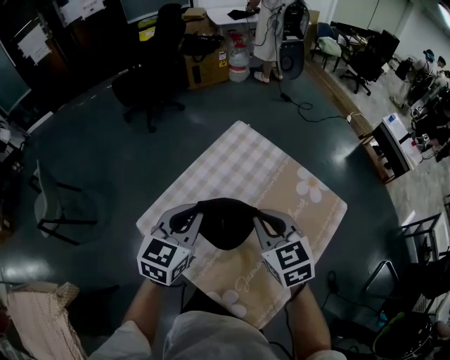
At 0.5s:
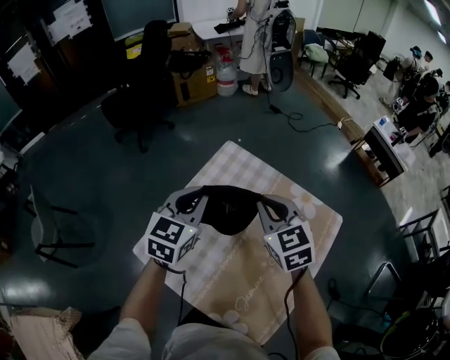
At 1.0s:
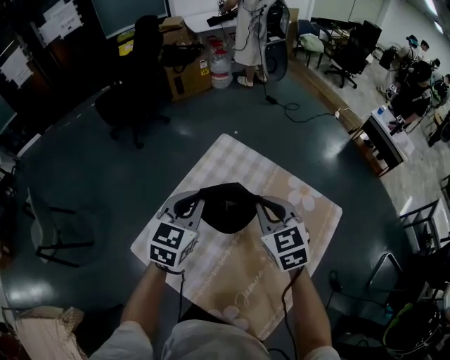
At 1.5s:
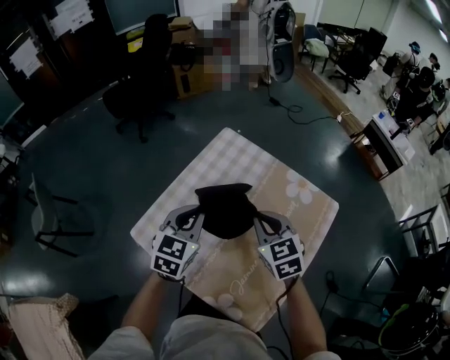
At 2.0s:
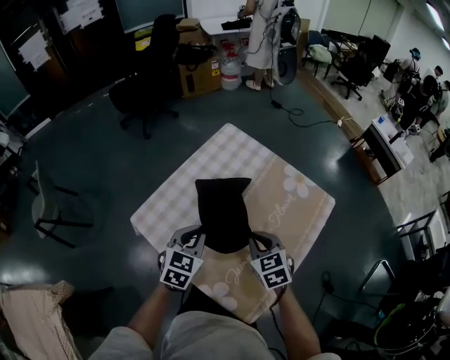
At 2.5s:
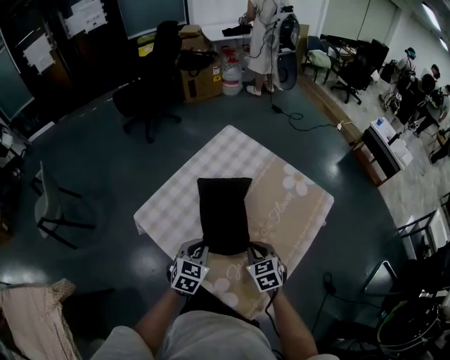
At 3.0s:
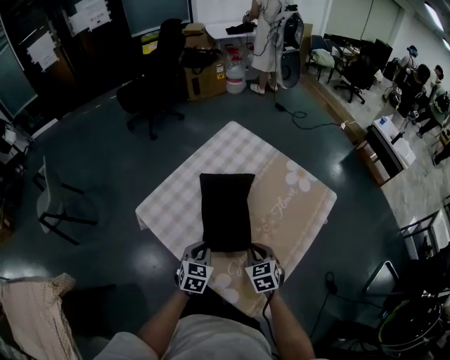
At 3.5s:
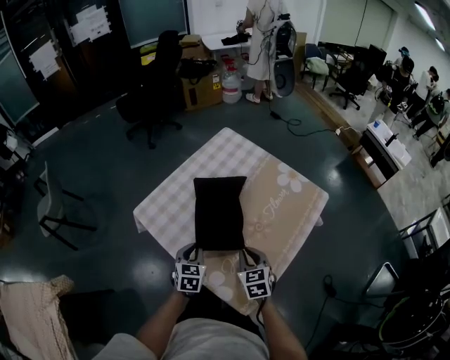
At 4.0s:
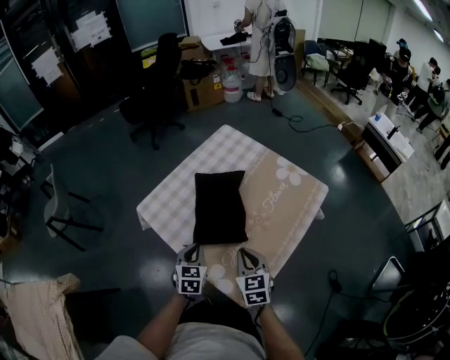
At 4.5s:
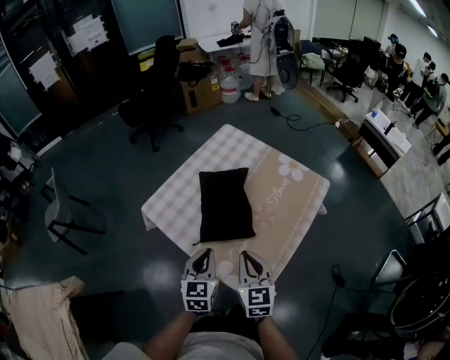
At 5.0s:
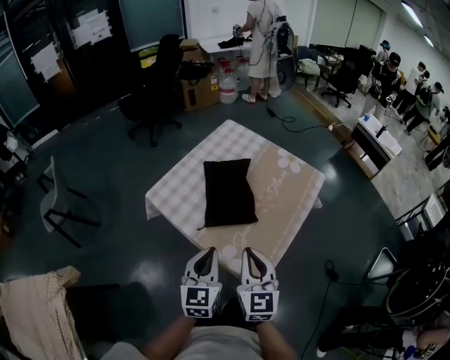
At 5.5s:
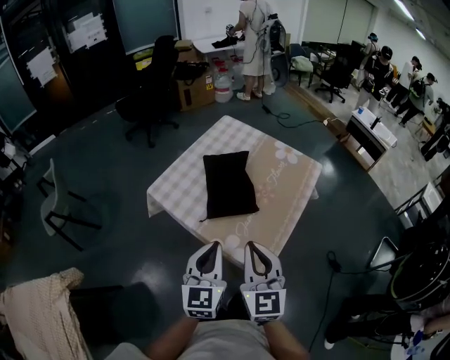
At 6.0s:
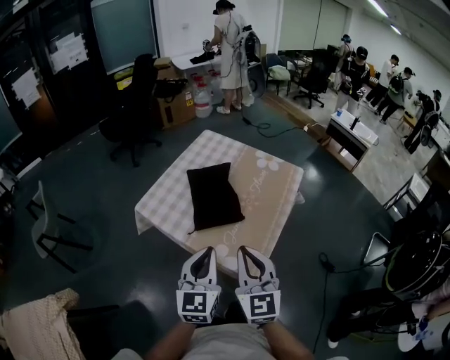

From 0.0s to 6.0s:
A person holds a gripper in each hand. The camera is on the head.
From 0.0s to 2.0s: The left gripper moves downward and backward, some 15 cm, while the right gripper shifts some 15 cm downward, backward and to the right.
From 2.0s to 4.0s: The right gripper goes roughly 15 cm backward. Meanwhile the left gripper travels backward and downward by some 15 cm.
From 4.0s to 6.0s: Both grippers travel together upward and backward, roughly 25 cm. The right gripper swivels roughly 30 degrees. Meanwhile the left gripper swivels about 30 degrees.

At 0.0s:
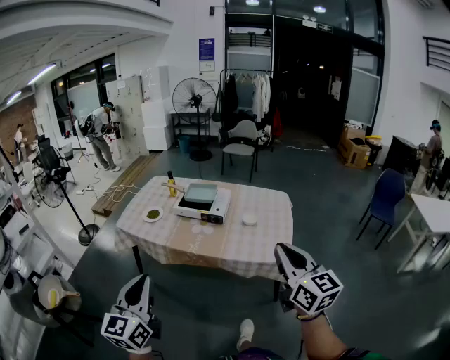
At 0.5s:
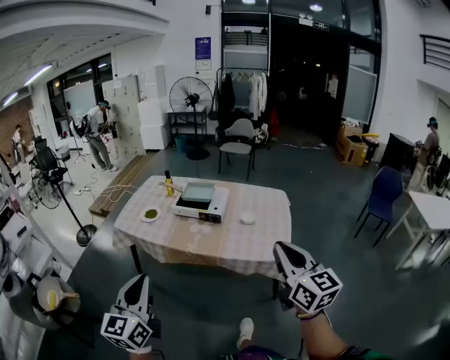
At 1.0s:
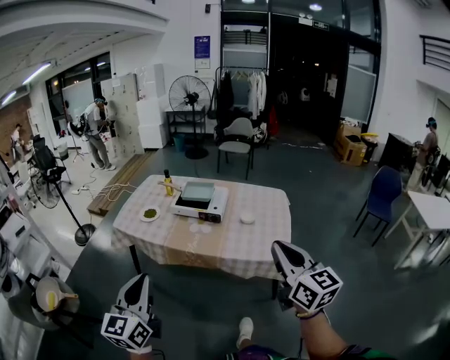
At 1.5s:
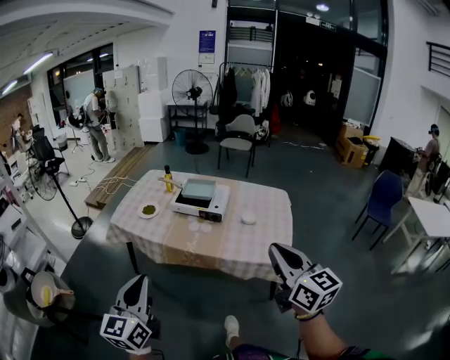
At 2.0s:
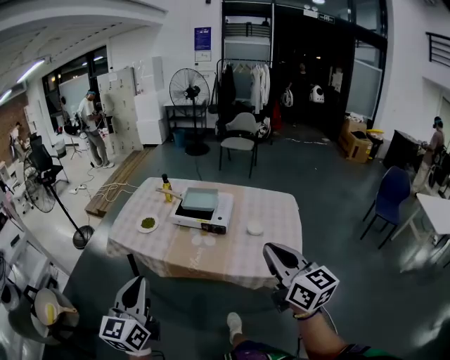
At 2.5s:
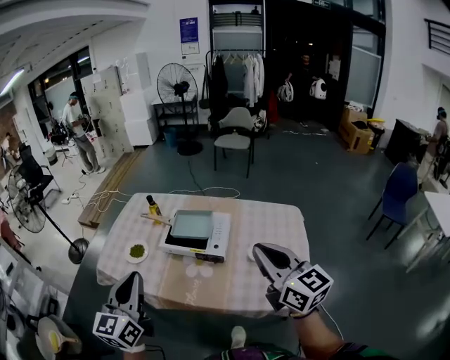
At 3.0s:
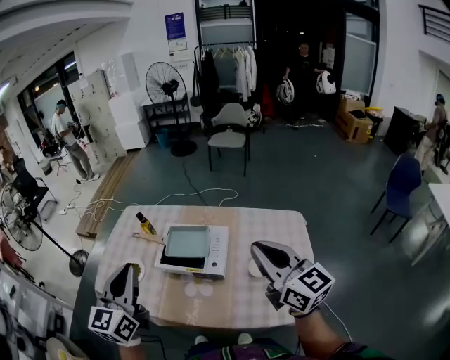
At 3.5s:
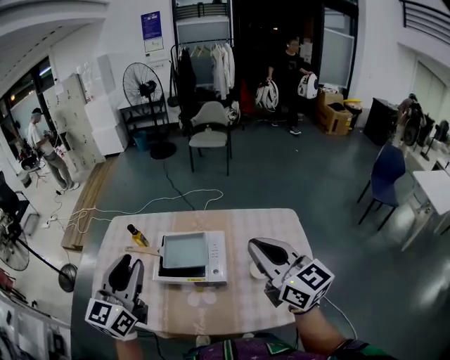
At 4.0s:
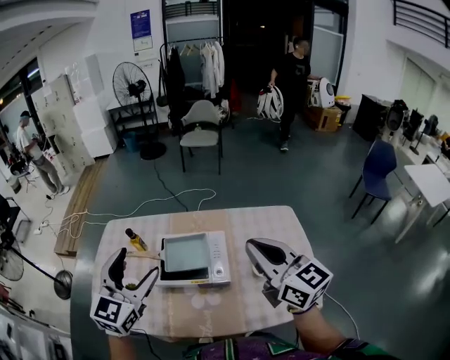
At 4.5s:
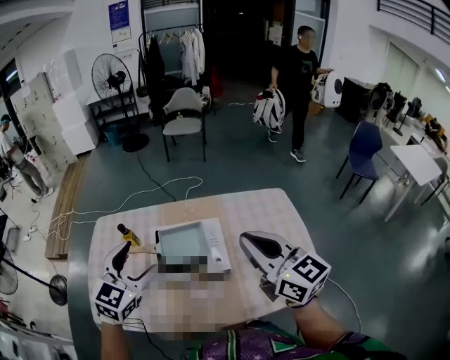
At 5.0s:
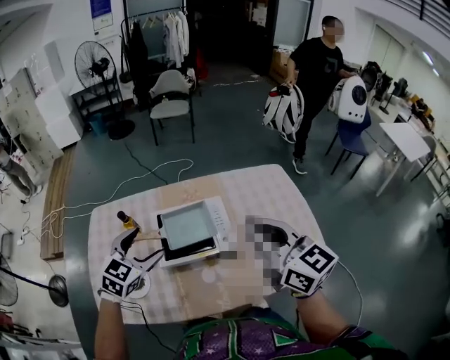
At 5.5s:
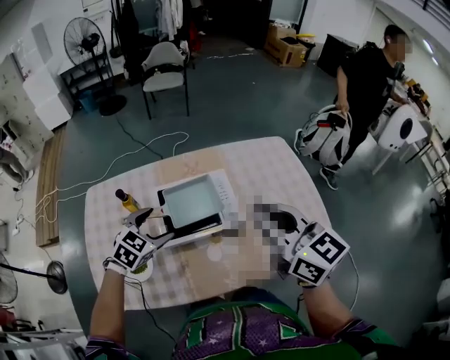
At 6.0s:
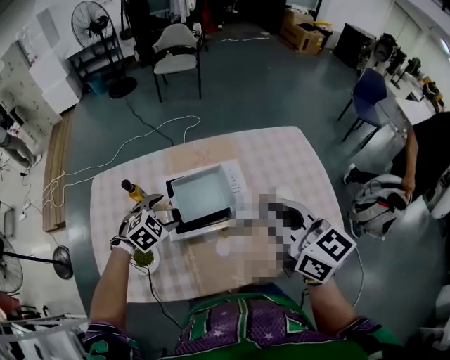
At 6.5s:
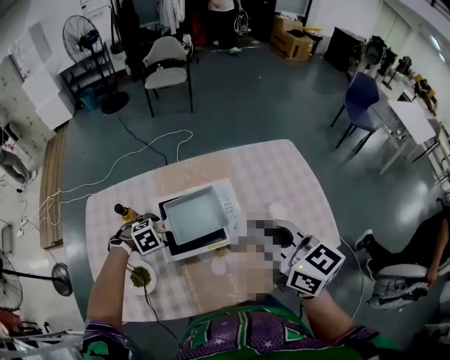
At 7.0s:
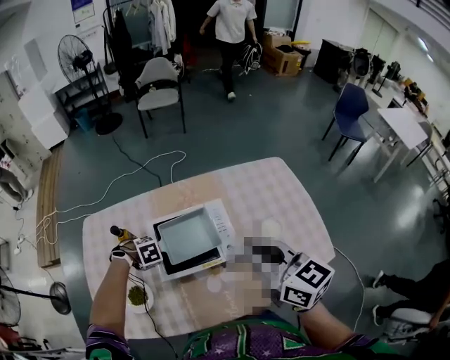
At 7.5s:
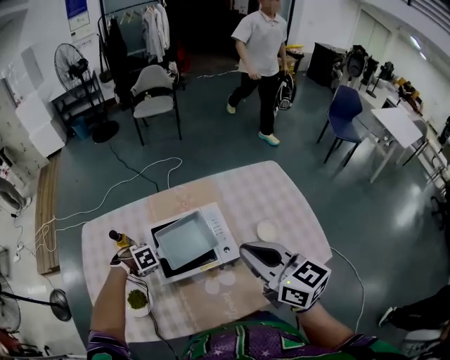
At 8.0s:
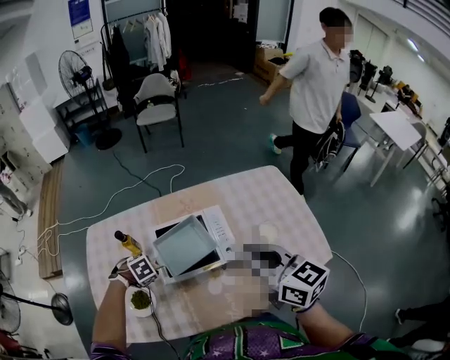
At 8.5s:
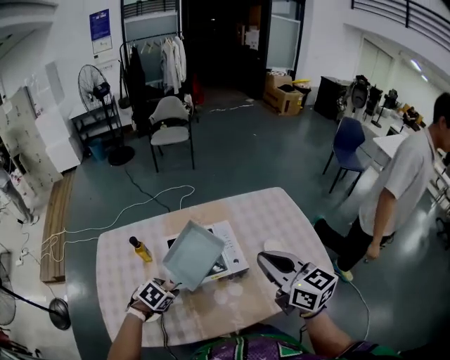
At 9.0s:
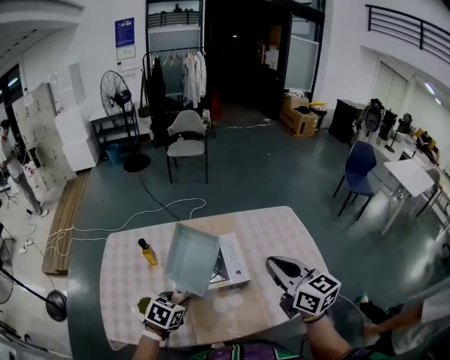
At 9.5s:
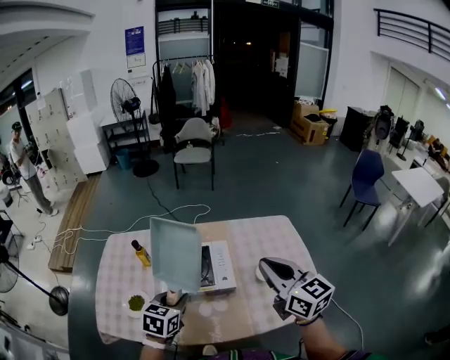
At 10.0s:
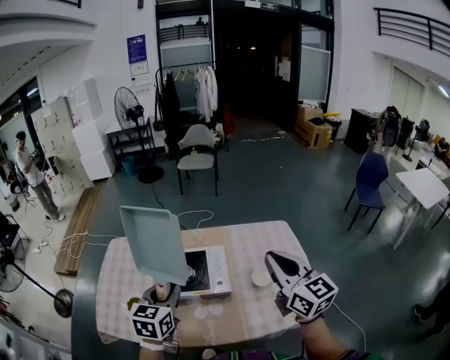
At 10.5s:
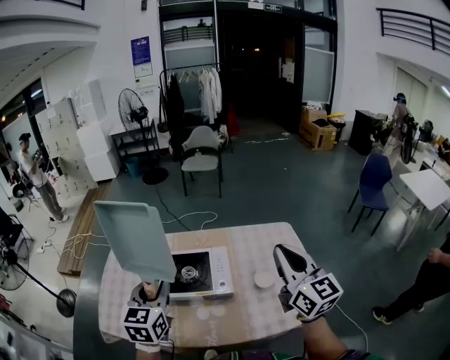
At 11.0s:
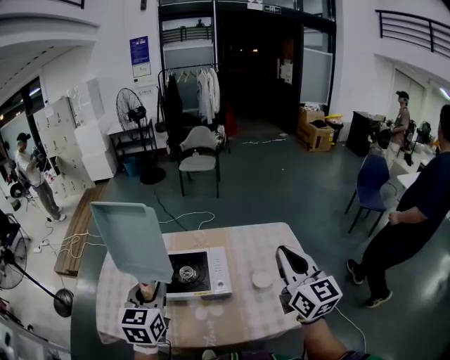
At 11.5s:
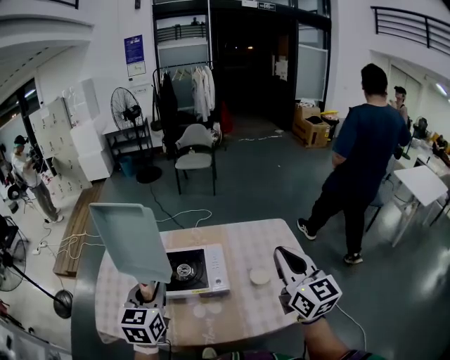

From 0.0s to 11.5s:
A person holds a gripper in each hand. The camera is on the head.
From 0.0s to 2.0s: The grippers both shift forward by roughly 15 cm.
From 2.0s to 4.0s: Both grippers are carried forward, roughly 50 cm. The left gripper changes its angle by about 30 degrees, and opens its fingers.
From 4.0s to 6.0s: The right gripper heads to the left and downward, covering roughly 15 cm. Meanwhile the left gripper moves downward, some 35 cm, and angles its fingers downward, by about 50 degrees.
From 6.0s to 7.5s: The left gripper goes approximately 10 cm downward, changes its angle by roughly 40 degrees, and closes.
From 7.5s to 9.5s: The right gripper ends up approximately 15 cm from where it was. The left gripper moves some 35 cm, and tips its fingers upward by about 50 degrees.
From 9.5s to 11.5s: The left gripper travels upward by about 15 cm, and rotates roughly 30 degrees. The right gripper travels to the right by some 10 cm.

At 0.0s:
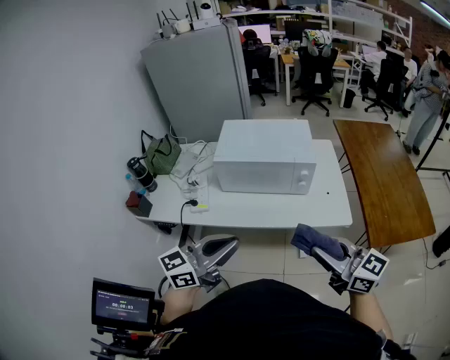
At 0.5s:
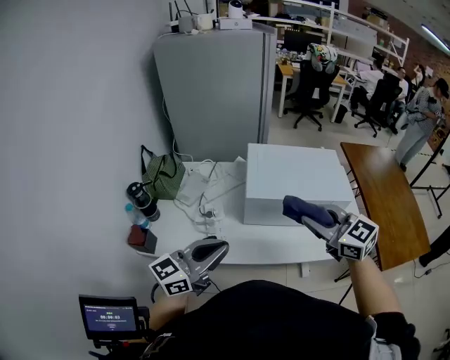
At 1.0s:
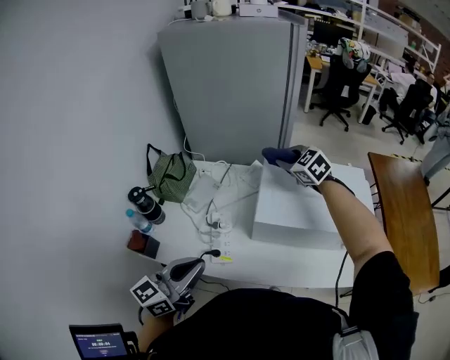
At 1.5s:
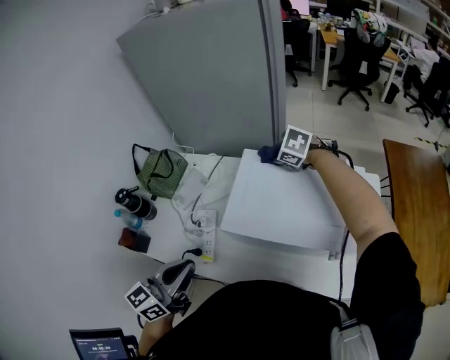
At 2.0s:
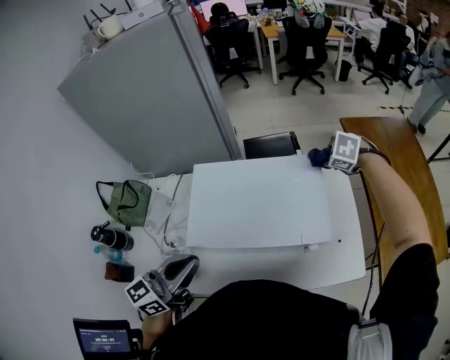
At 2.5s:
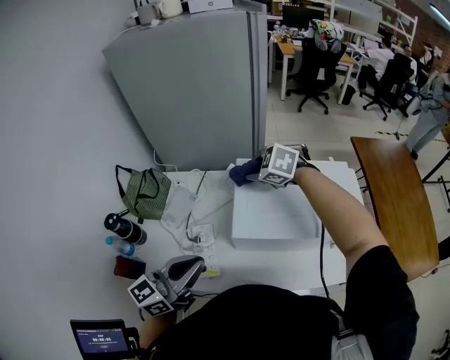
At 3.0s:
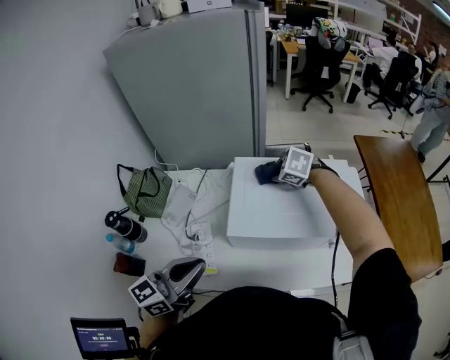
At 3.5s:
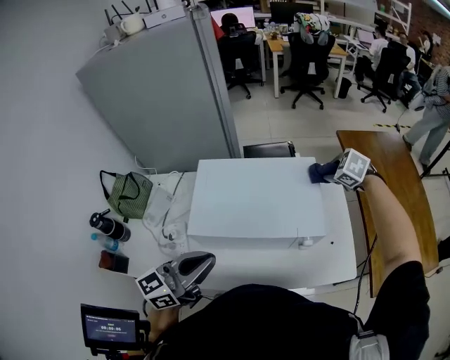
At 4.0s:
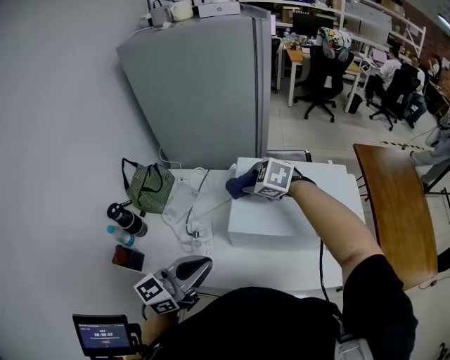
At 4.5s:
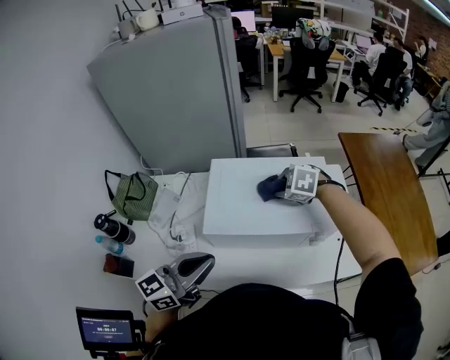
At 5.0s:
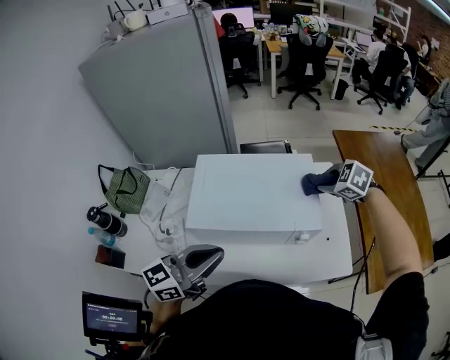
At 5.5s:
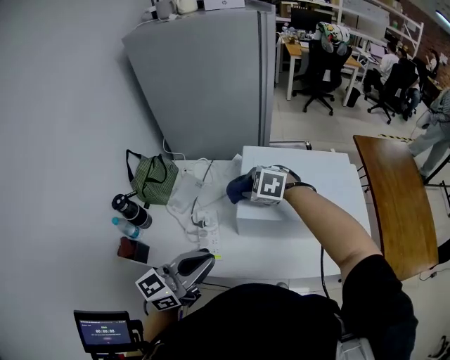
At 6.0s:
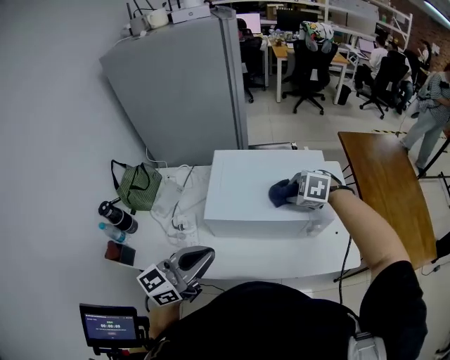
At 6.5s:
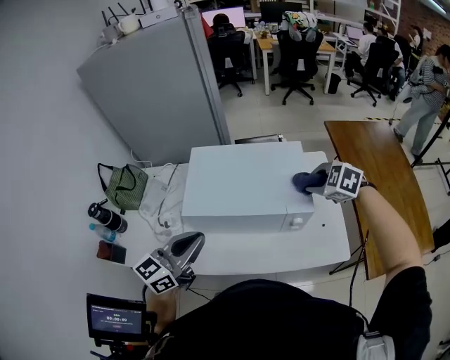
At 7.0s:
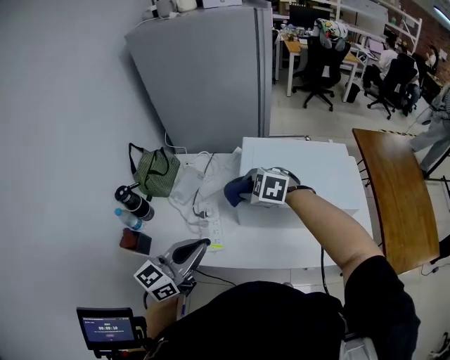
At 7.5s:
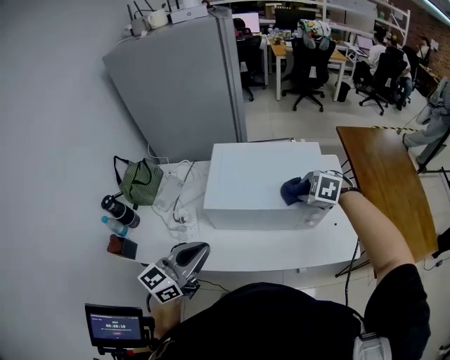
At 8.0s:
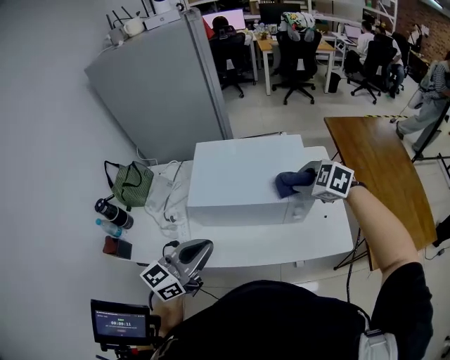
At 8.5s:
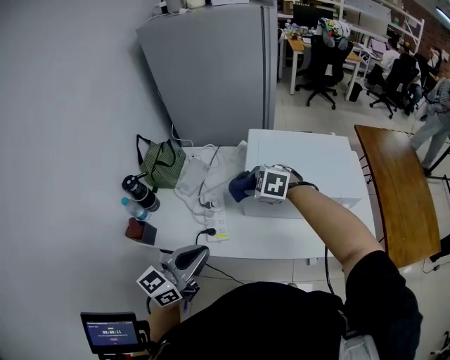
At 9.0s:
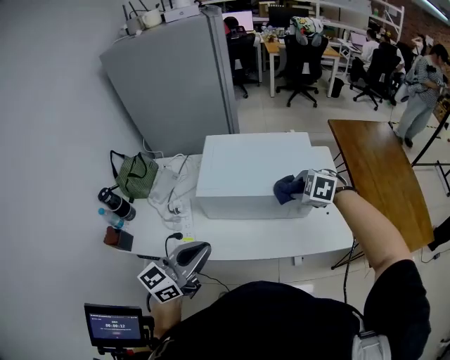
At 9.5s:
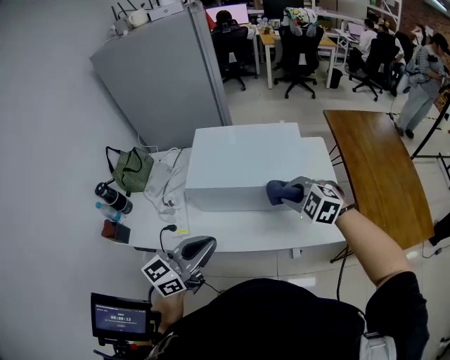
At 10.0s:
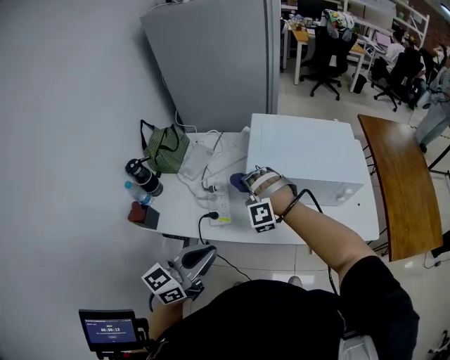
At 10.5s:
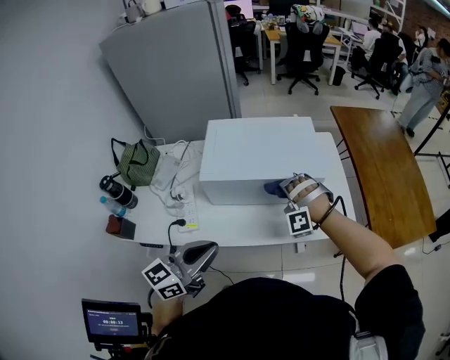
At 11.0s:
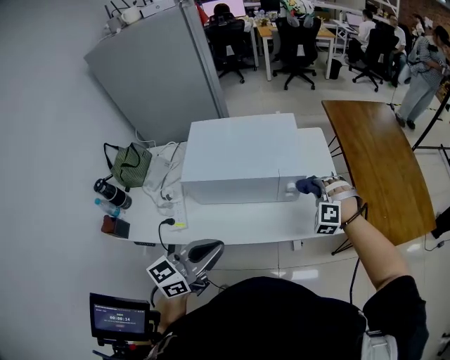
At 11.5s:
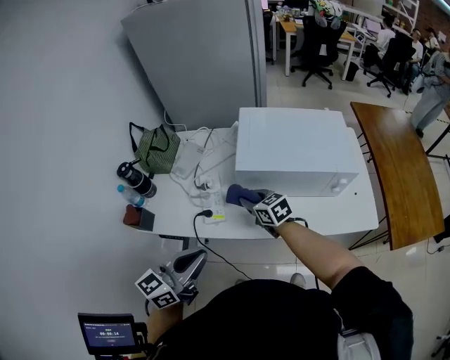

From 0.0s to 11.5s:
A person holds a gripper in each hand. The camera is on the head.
From 0.0s to 2.0s: The left gripper shifts by approximately 35 cm, while the right gripper moves some 60 cm, and tilts its fingers about 70 degrees downward.
From 2.0s to 4.0s: The right gripper moves up and down over approximately 5 cm, changing direction 2 times, and swivels approximately 30 degrees. Meanwhile the left gripper shifts by roughly 15 cm.
From 4.0s to 6.0s: The left gripper moves left and right over about 20 cm, changing direction 2 times. The right gripper moves left and right over approximately 40 cm, changing direction 2 times.
From 6.0s to 7.5s: The right gripper moves left and right over roughly 40 cm, changing direction 2 times. Meanwhile the left gripper swings left and right, about 20 cm each way, with 2 reversals.
From 7.5s to 9.5s: The right gripper swings left and right, roughly 35 cm each way, with 2 reversals. Meanwhile the left gripper moves left and right over roughly 20 cm, changing direction 2 times.
From 9.5s to 11.5s: The right gripper shifts by some 30 cm, and twists some 50 degrees clockwise, seen from behind. The left gripper ends up roughly 20 cm from where it was.
